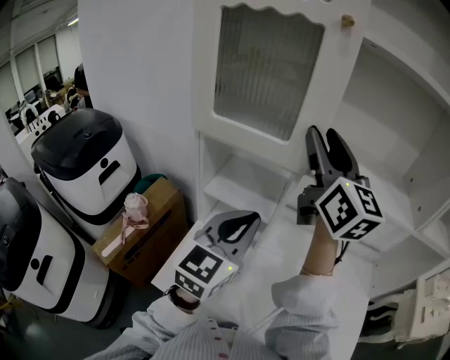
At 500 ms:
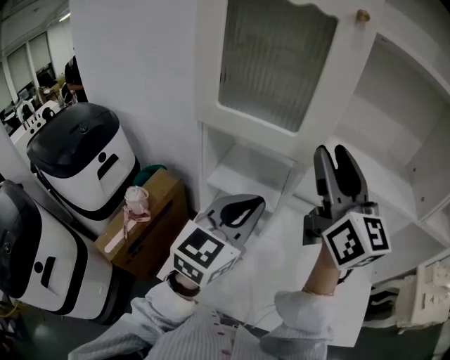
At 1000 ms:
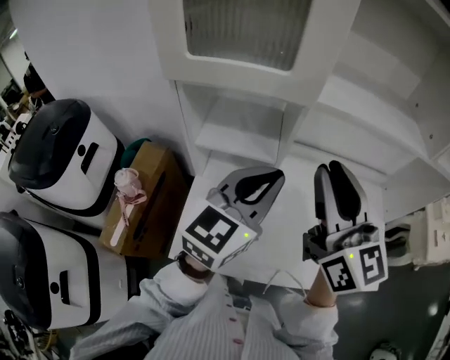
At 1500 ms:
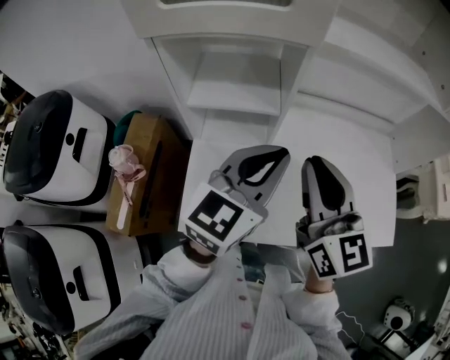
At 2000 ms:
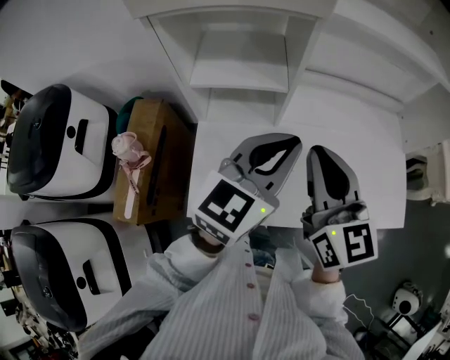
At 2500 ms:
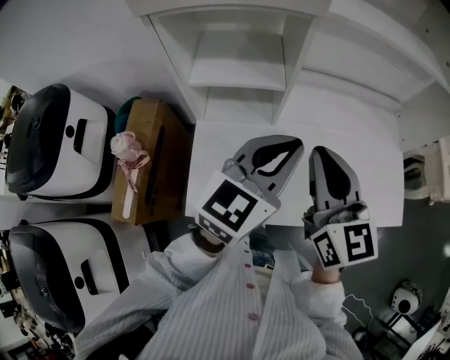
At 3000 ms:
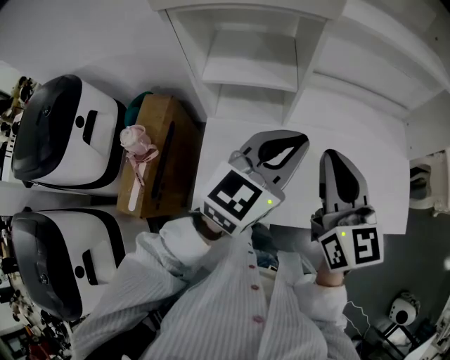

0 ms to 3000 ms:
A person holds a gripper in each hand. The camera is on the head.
0 ms to 1500 ms: The left gripper is displaced downward by roughly 5 cm, and changes its angle by roughly 30 degrees; the right gripper is displaced downward and backward by approximately 25 cm, rotates about 20 degrees, and closes up.
1500 ms to 3000 ms: The grippers move only a little.

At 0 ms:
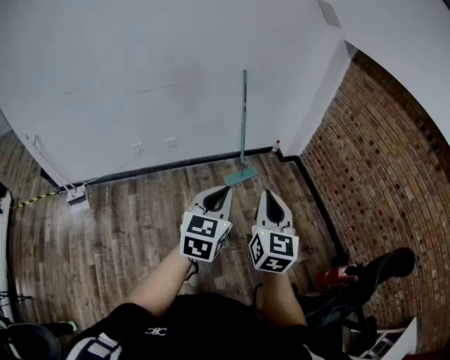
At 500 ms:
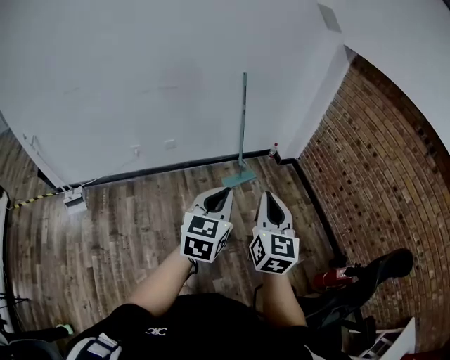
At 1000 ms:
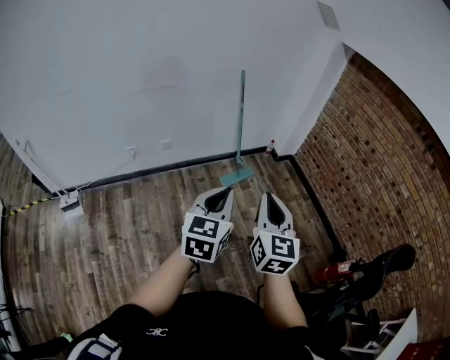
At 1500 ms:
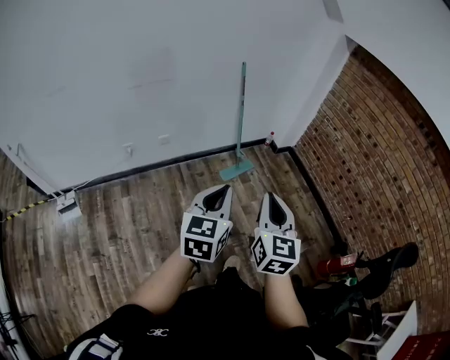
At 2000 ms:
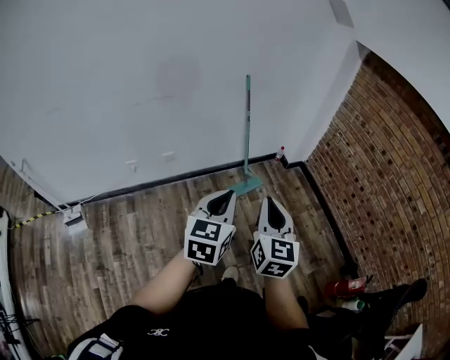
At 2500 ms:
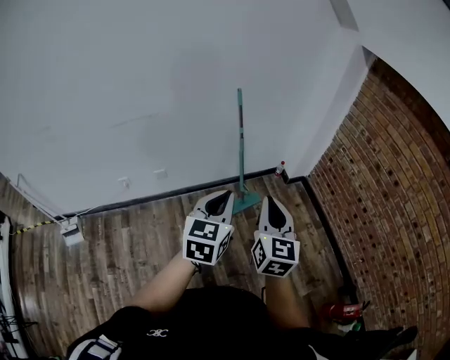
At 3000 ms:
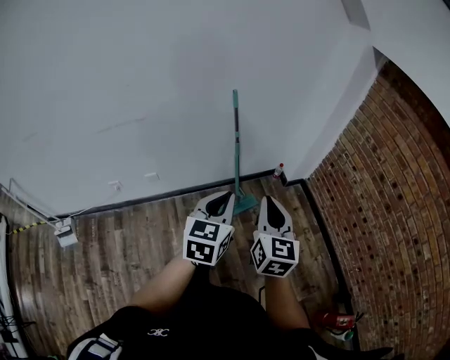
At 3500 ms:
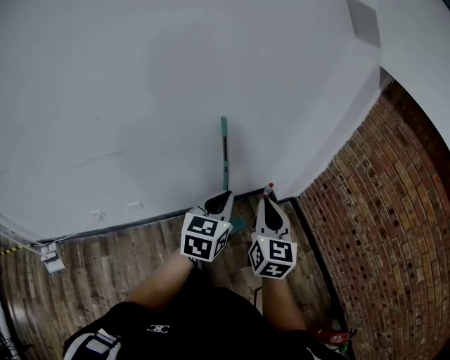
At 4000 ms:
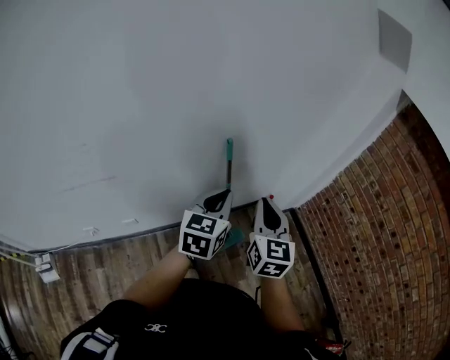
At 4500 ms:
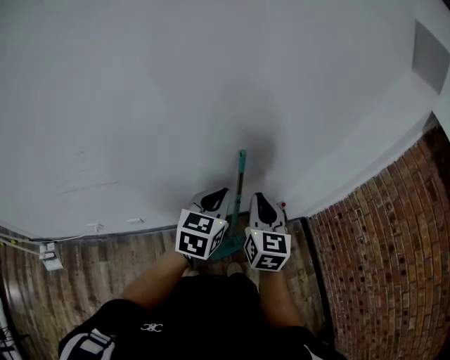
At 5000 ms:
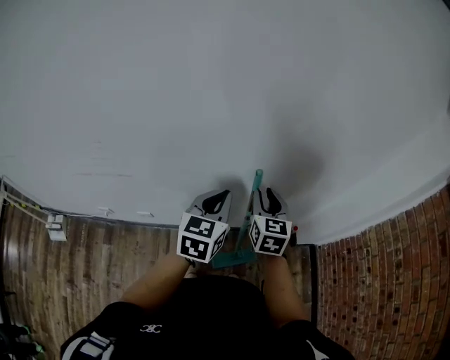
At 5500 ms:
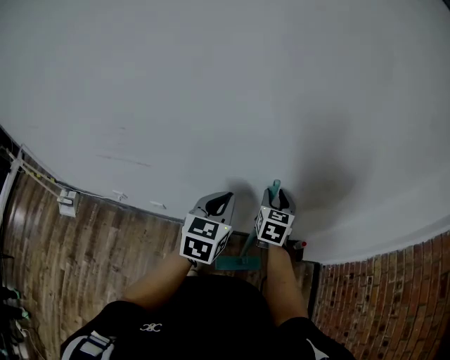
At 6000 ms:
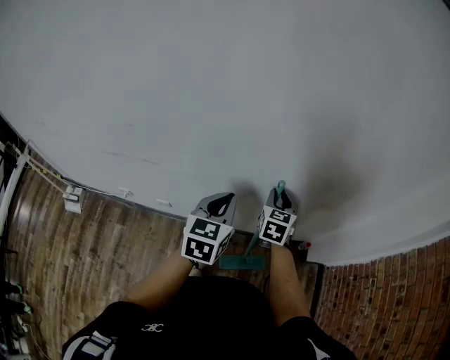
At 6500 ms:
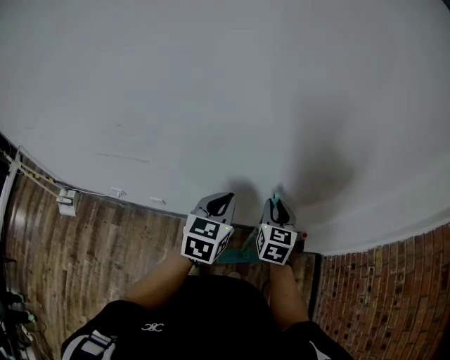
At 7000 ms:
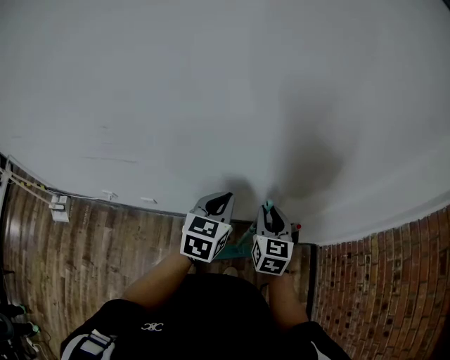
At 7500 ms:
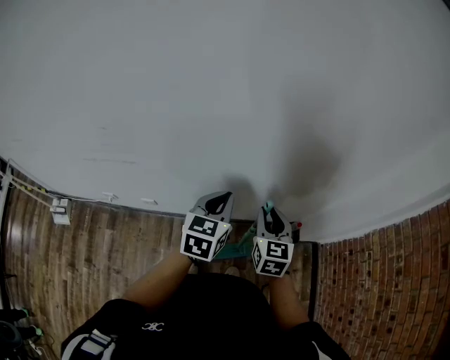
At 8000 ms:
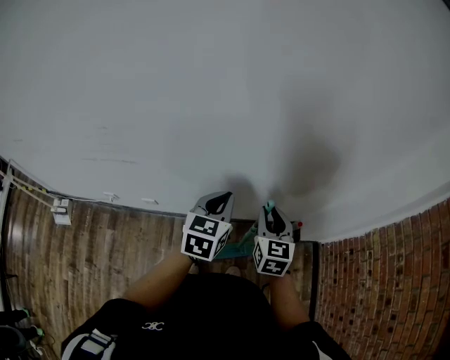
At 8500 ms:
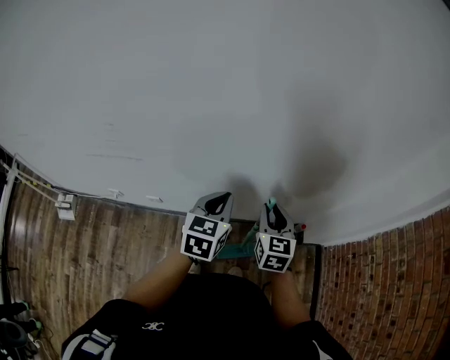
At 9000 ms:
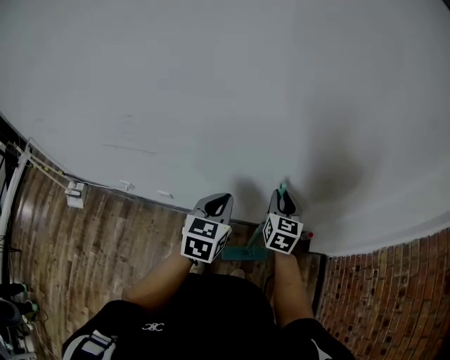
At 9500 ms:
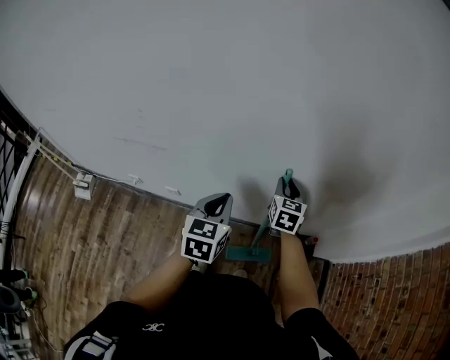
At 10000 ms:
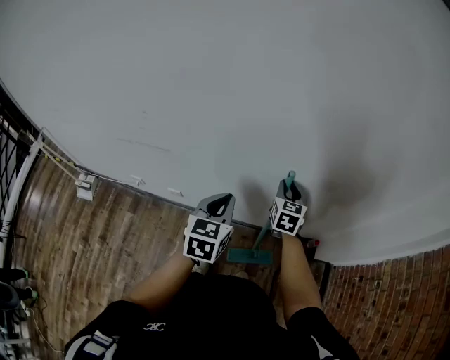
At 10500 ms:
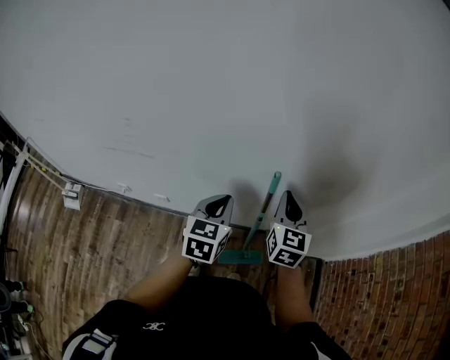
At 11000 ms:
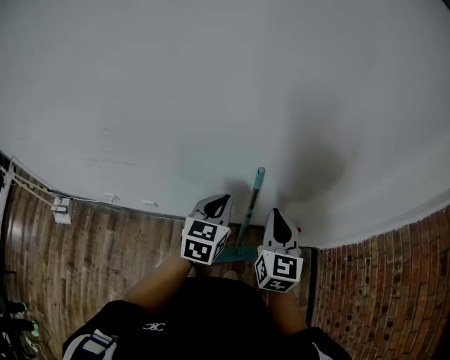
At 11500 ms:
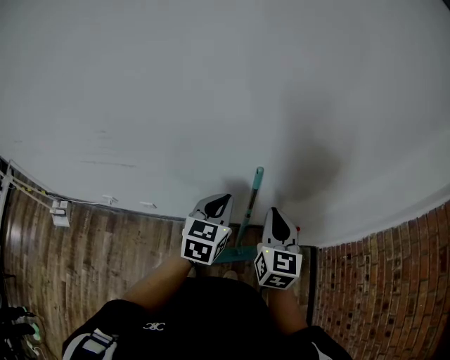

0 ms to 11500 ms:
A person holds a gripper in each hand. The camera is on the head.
0 ms to 2000 ms: The grippers both shift forward and to the left by roughly 15 cm.
2000 ms to 4000 ms: The two grippers travel together, forward, roughly 50 cm.
4000 ms to 6000 ms: The right gripper goes some 25 cm forward and downward, rotates some 20 degrees, and opens its fingers. Meanwhile the left gripper travels forward and to the left by some 10 cm, and turns by about 30 degrees.
6000 ms to 7500 ms: The left gripper changes place by approximately 5 cm, while the right gripper travels backward by about 10 cm.
7500 ms to 9500 ms: The left gripper shifts some 5 cm to the left. The right gripper shifts about 10 cm forward.
9500 ms to 11500 ms: The left gripper moves to the right, some 5 cm, while the right gripper goes approximately 15 cm backward and upward, and closes its fingers.

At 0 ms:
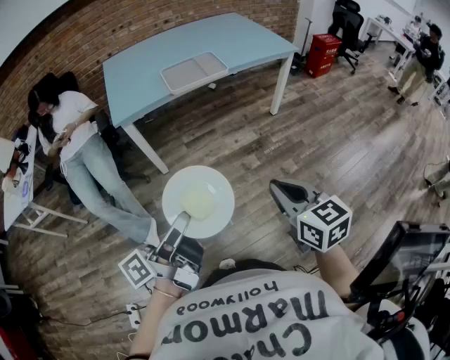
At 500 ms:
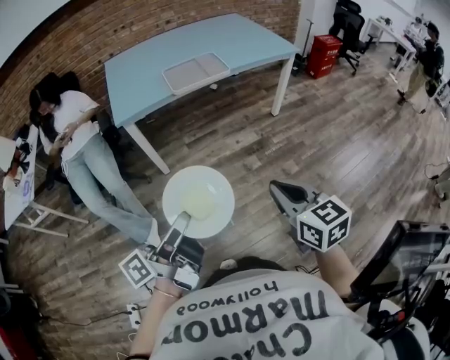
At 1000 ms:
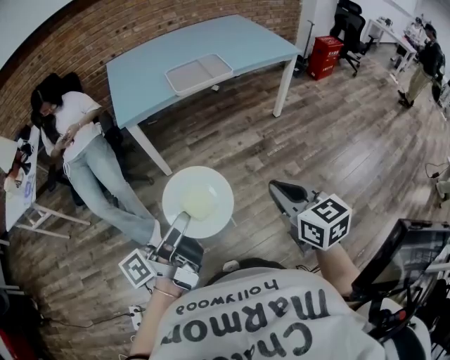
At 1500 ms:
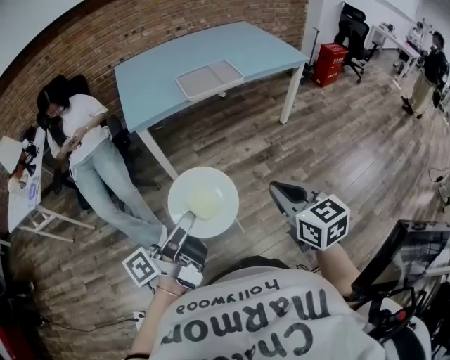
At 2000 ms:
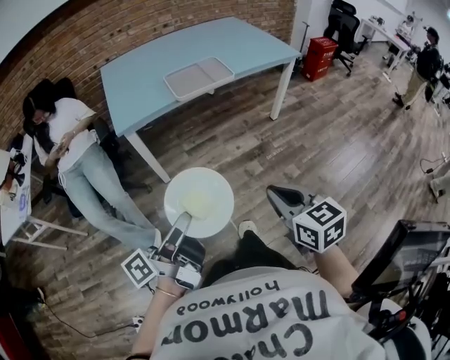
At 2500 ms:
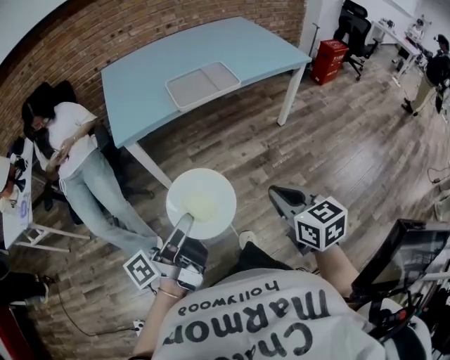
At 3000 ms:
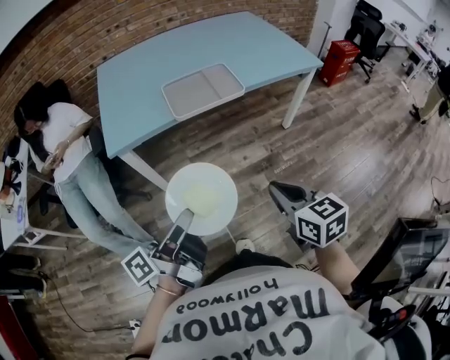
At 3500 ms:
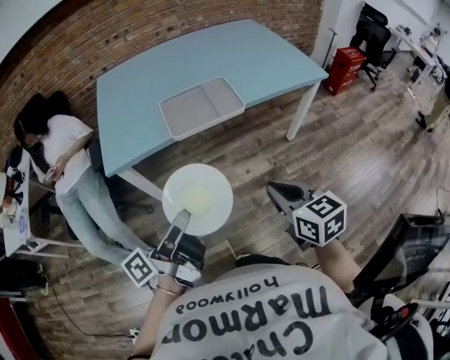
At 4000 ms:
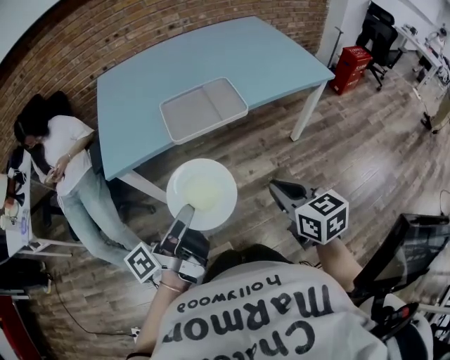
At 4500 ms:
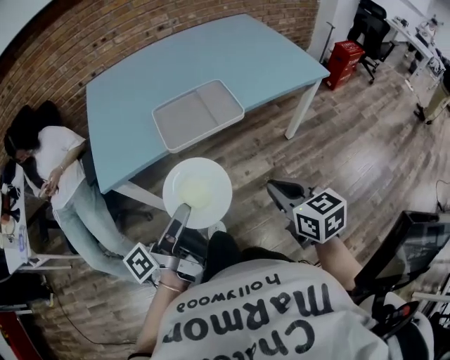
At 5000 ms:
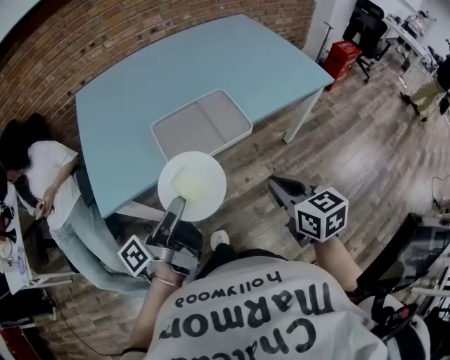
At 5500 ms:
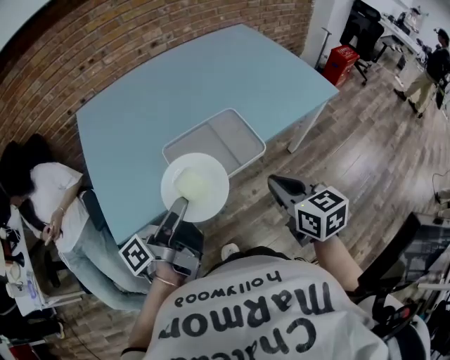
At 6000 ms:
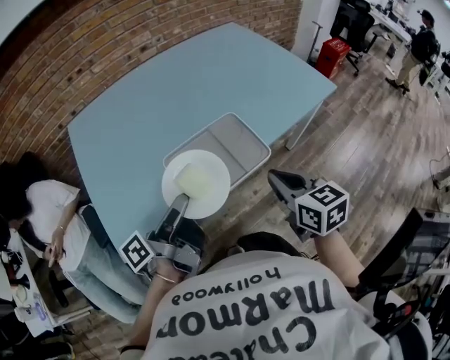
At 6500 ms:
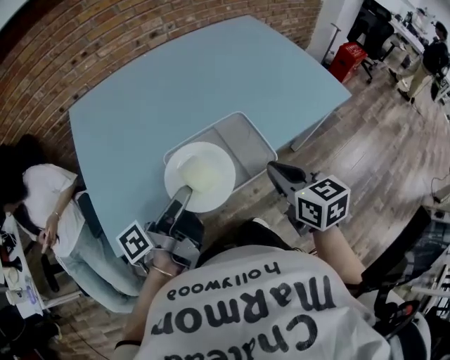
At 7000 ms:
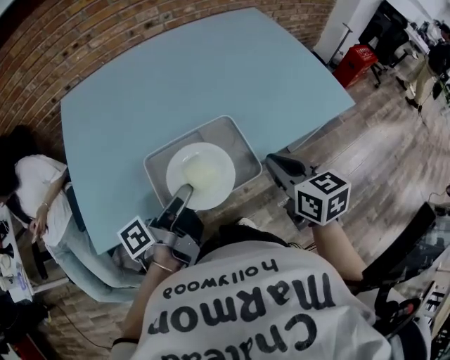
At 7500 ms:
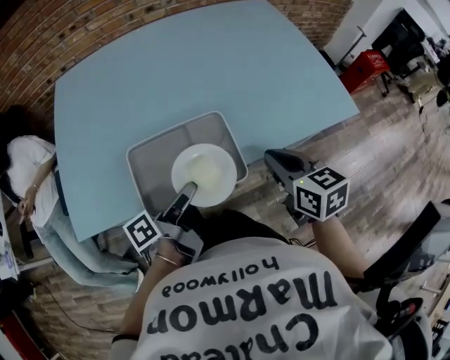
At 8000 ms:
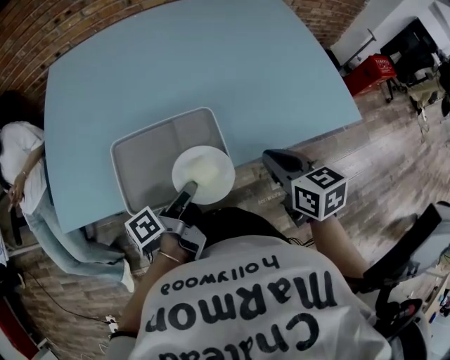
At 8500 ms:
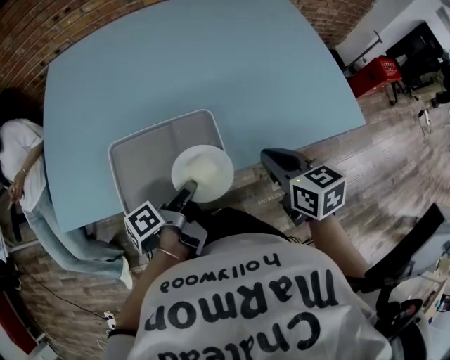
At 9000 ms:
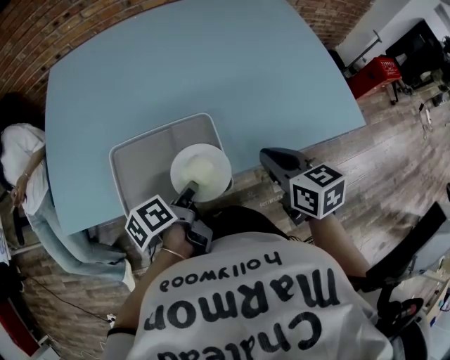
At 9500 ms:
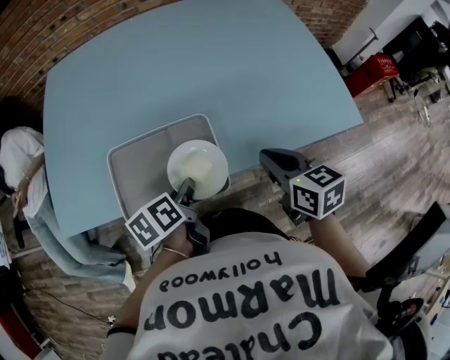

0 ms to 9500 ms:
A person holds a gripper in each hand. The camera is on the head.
0 ms to 2000 ms: The right gripper shifts by about 10 cm.
2000 ms to 4000 ms: The right gripper shifts by roughly 35 cm.
4000 ms to 5500 ms: The right gripper shifts by roughly 20 cm.
5500 ms to 7500 ms: The right gripper shifts by about 20 cm.
7500 ms to 9500 ms: The right gripper shifts by approximately 5 cm.

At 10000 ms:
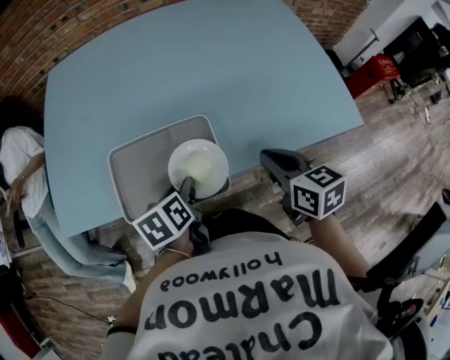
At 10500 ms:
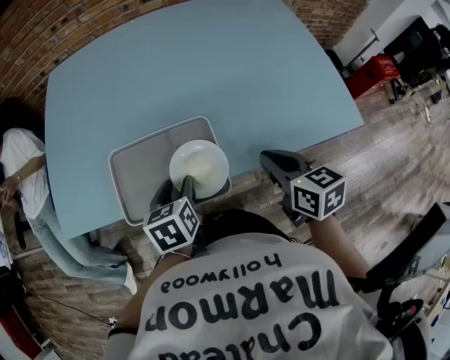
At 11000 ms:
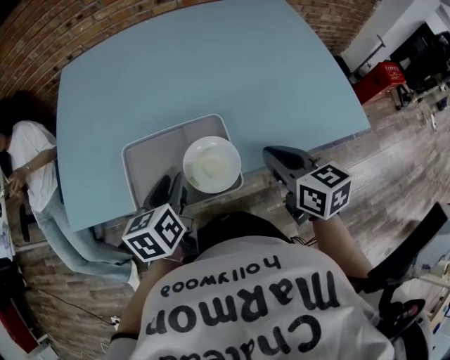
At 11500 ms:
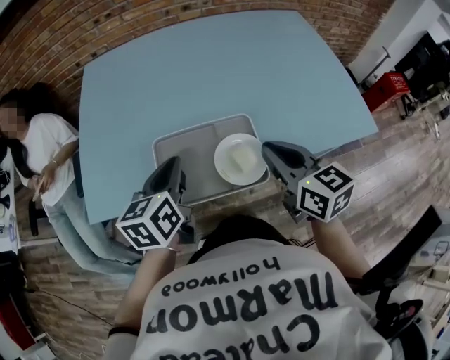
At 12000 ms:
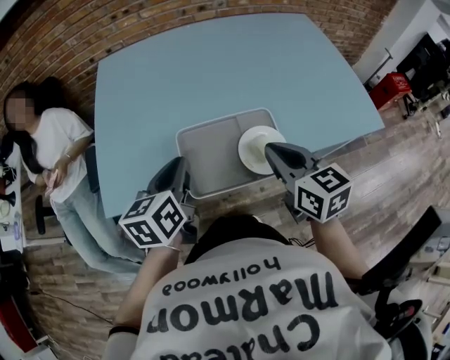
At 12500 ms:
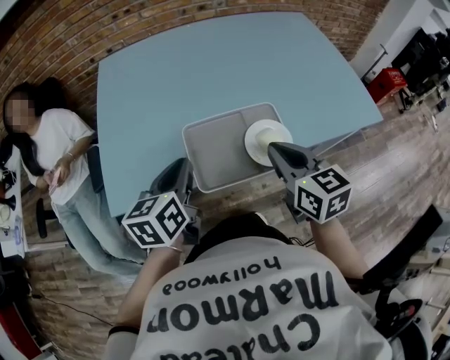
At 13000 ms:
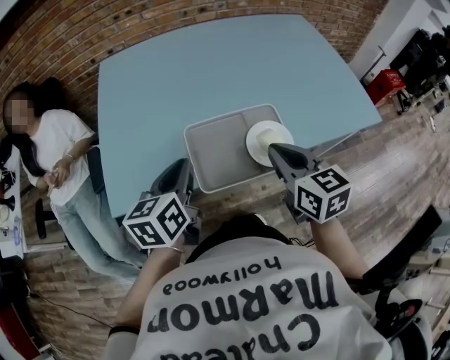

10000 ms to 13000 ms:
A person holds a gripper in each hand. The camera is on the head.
10000 ms to 11500 ms: The right gripper changes place by approximately 15 cm.
11500 ms to 13000 ms: The right gripper ends up about 10 cm from where it was.
